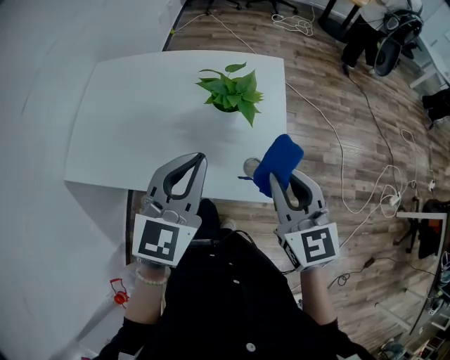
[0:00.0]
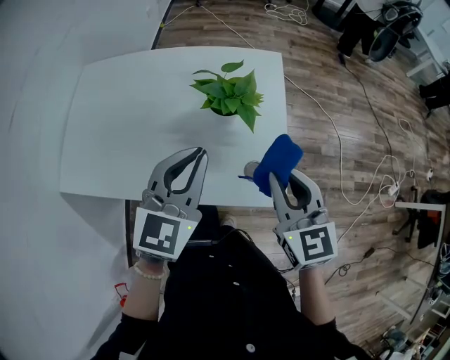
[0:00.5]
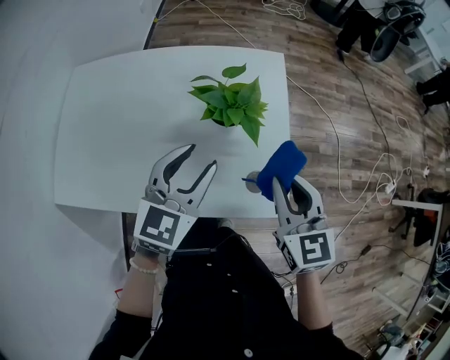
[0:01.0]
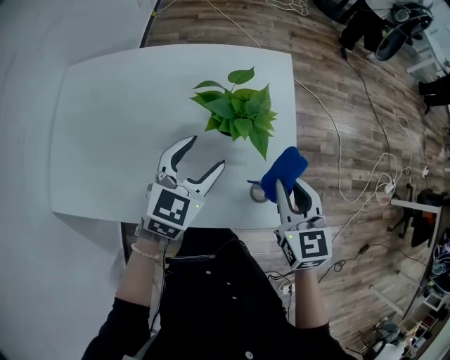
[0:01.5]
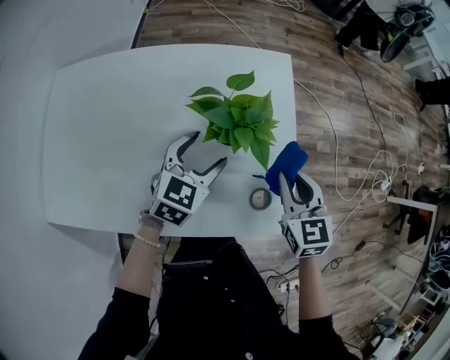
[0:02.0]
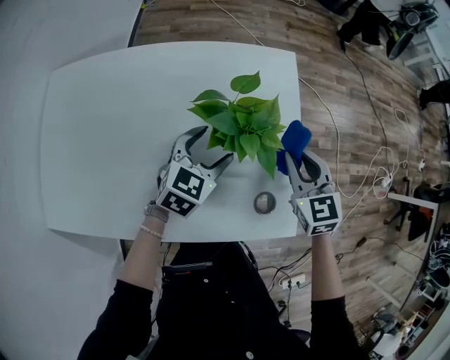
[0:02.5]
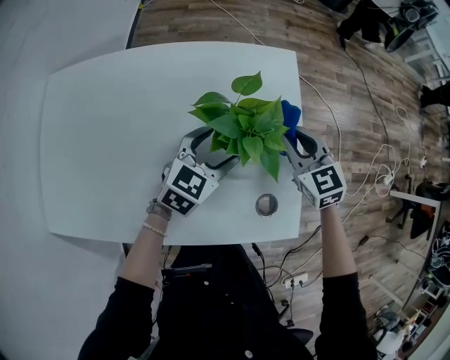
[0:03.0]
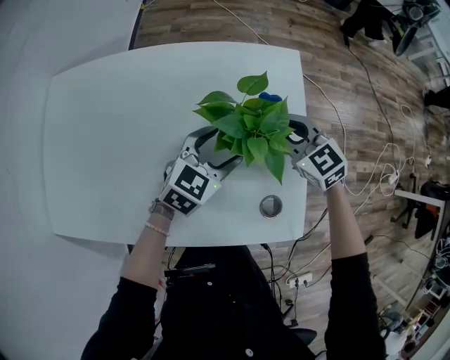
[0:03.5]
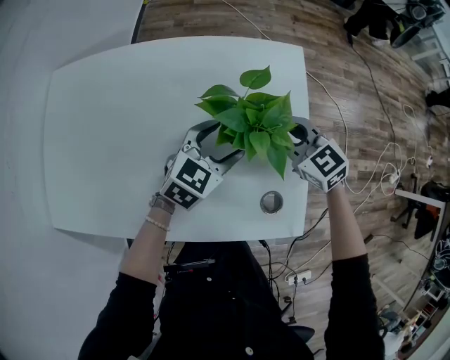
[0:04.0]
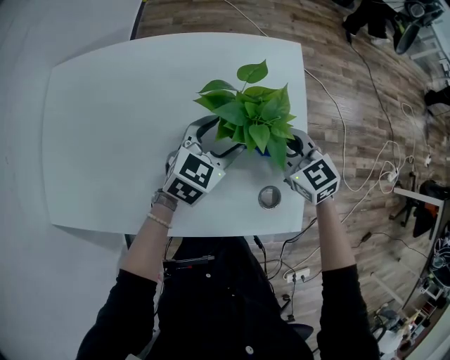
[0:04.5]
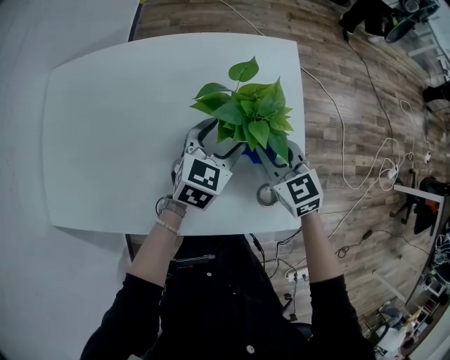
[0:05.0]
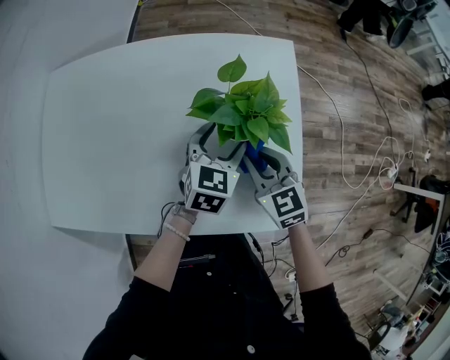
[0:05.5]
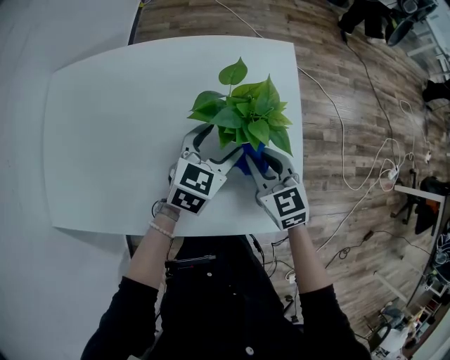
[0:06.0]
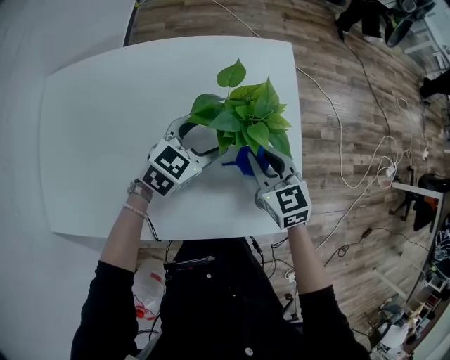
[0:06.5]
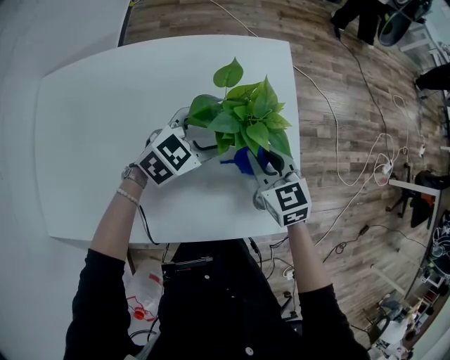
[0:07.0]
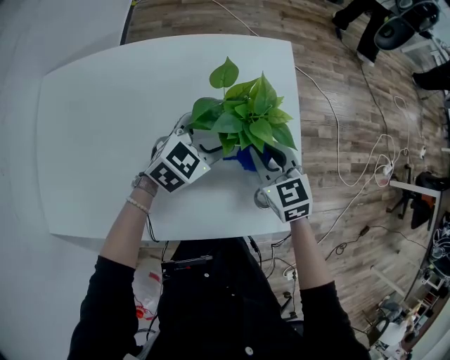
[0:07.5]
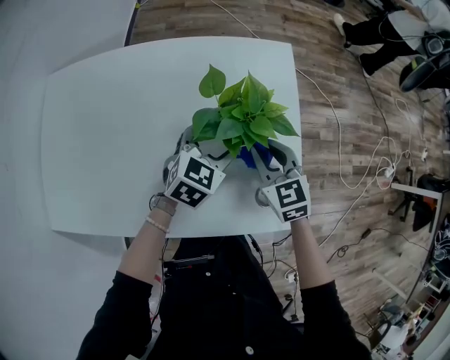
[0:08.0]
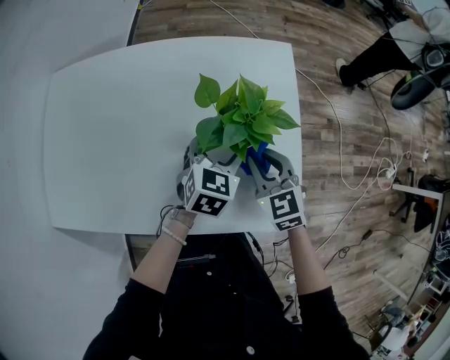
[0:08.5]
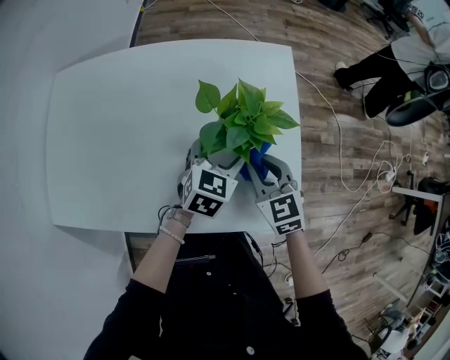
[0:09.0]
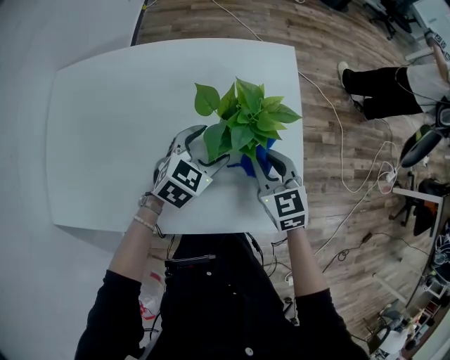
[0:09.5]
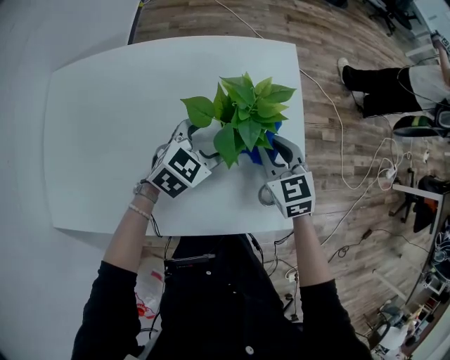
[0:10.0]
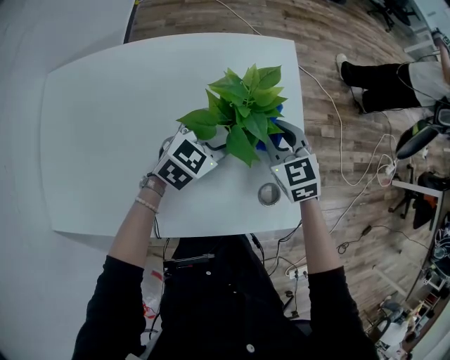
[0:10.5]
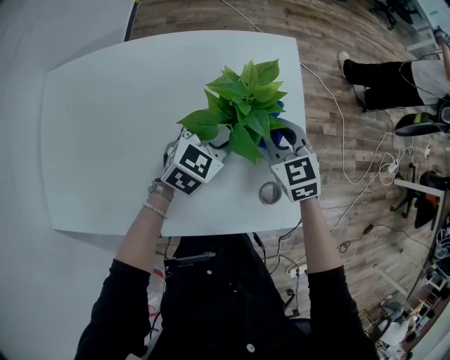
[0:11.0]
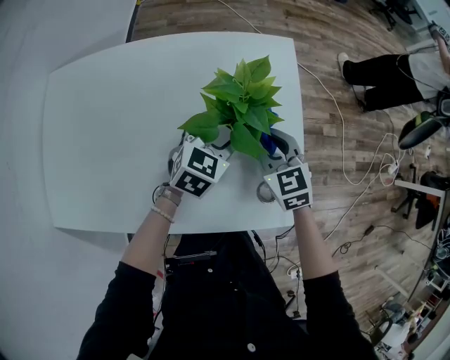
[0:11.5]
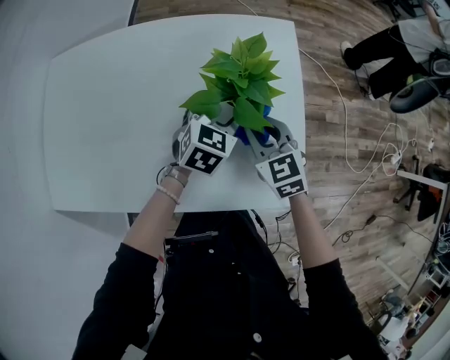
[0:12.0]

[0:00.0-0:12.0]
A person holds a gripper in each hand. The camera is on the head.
0.0 to 2.0 s: Both grippers move downward and forward, approximately 25 cm. The left gripper rotates about 30 degrees, and opens its fingers. The right gripper turns by about 20 degrees.
2.0 to 4.0 s: The right gripper is displaced forward, to the left and downward by roughly 15 cm, and turns by about 30 degrees.
4.0 to 6.0 s: The right gripper moves backward, approximately 10 cm.
8.0 to 12.0 s: There are only small adjustments of the grippers.

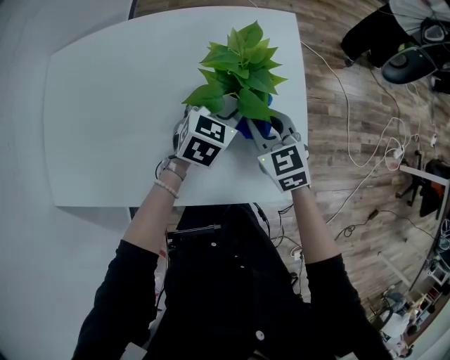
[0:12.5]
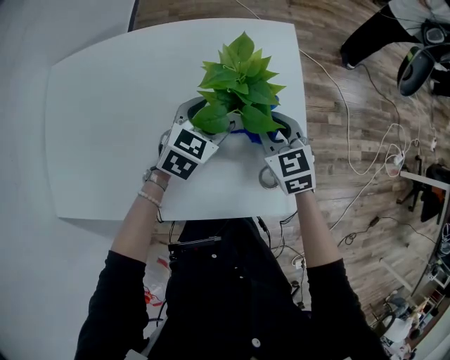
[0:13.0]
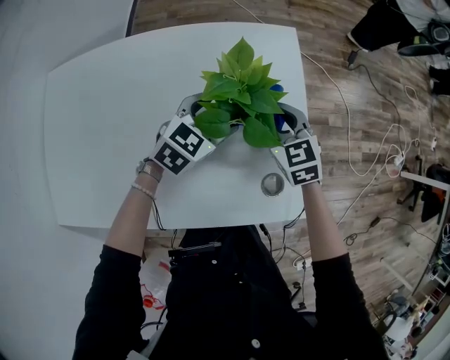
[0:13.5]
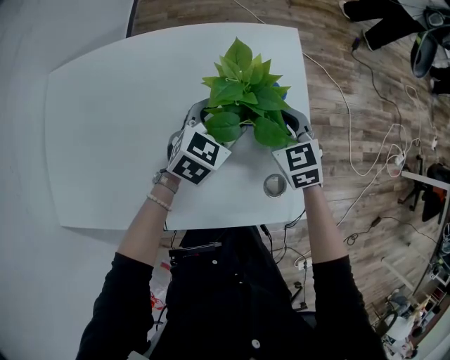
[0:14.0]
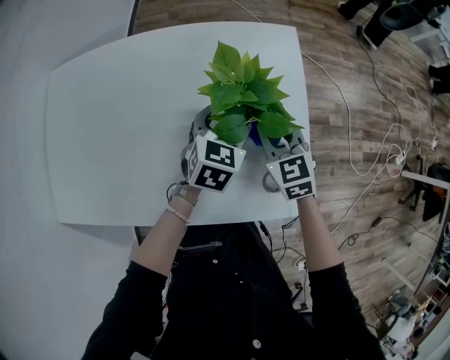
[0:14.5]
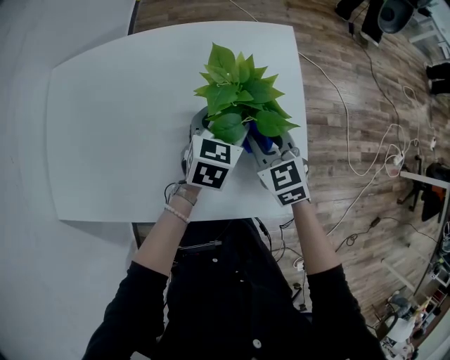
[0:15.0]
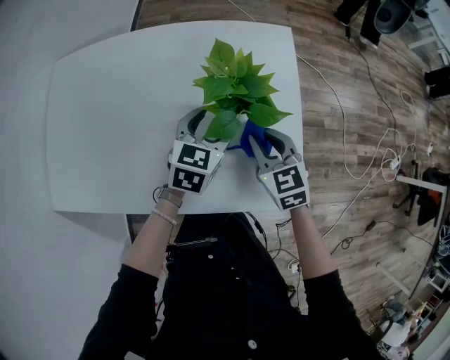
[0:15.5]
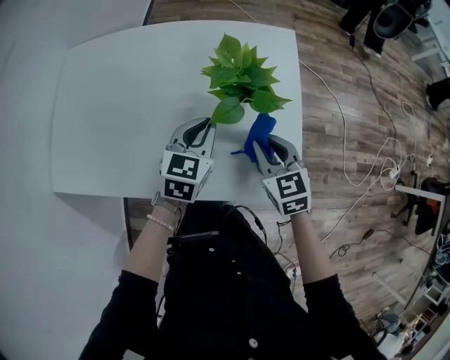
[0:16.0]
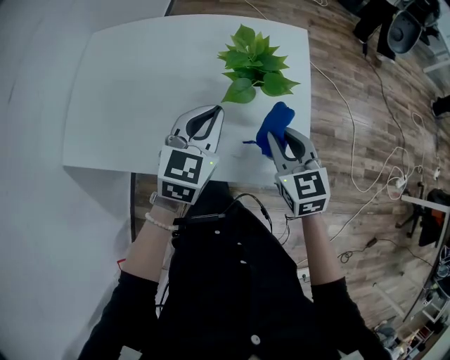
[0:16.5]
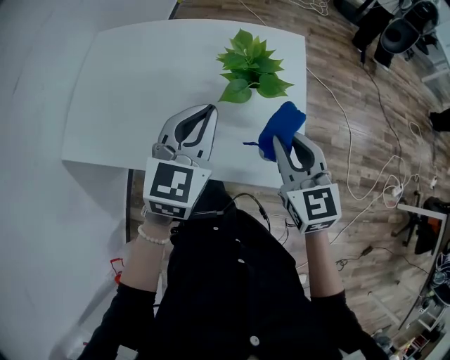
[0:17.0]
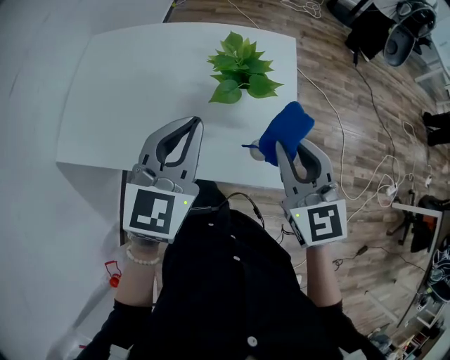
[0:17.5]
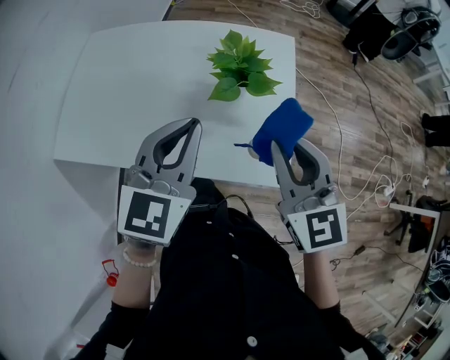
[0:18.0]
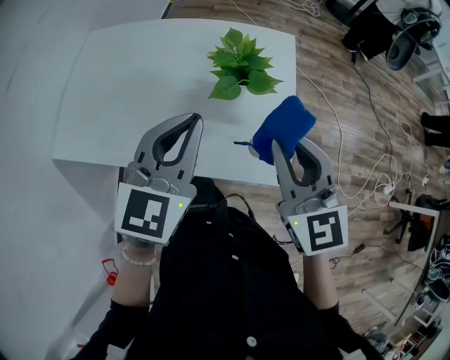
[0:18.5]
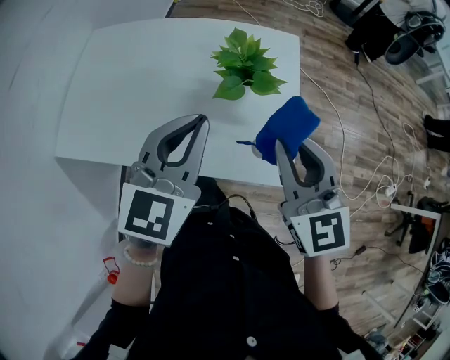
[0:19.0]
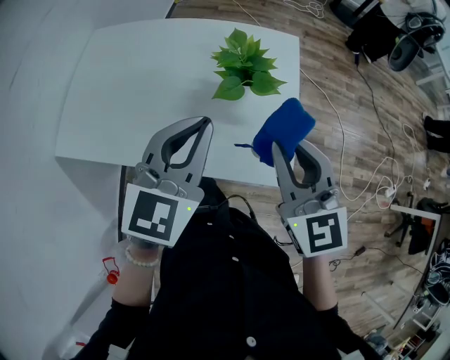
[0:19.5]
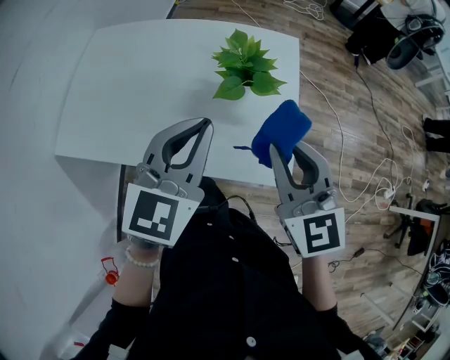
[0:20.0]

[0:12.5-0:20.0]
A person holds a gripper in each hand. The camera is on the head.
14.5 to 16.5 s: The left gripper is displaced upward, backward and to the left by some 20 cm, and closes its fingers, while the right gripper shifts about 15 cm backward and upward.
16.5 to 18.0 s: The right gripper goes roughly 15 cm upward, while the left gripper heads upward and backward, covering approximately 15 cm.
18.0 to 20.0 s: There are only small adjustments of the grippers.

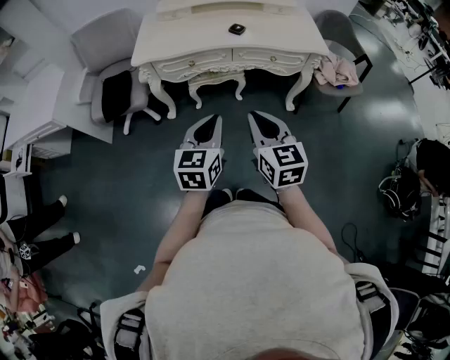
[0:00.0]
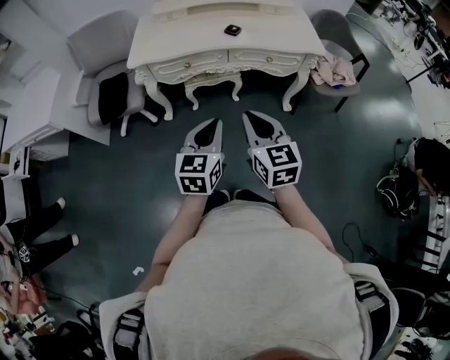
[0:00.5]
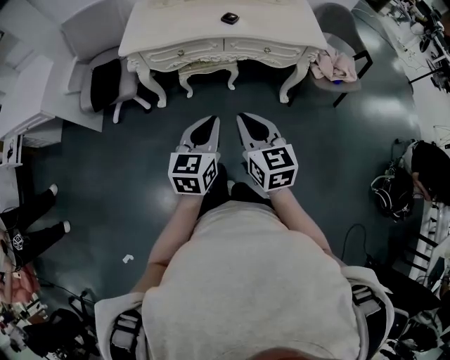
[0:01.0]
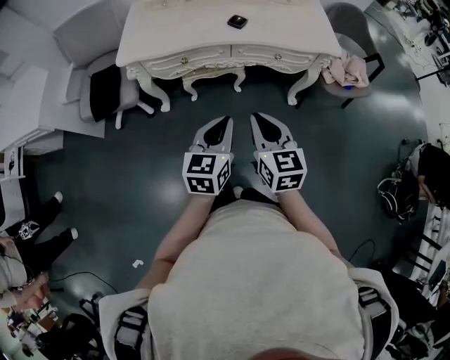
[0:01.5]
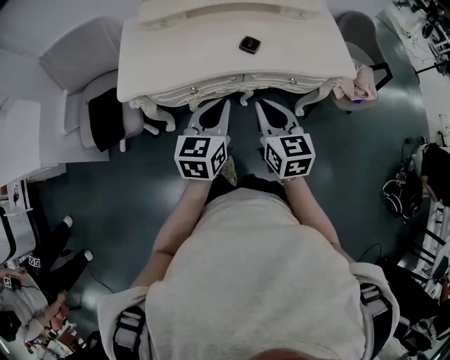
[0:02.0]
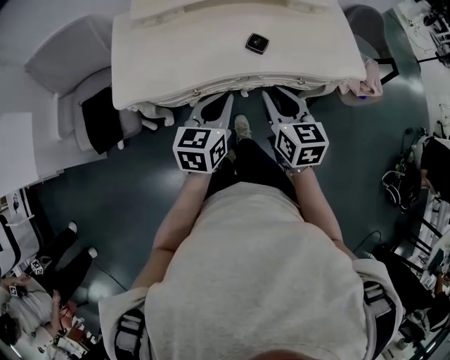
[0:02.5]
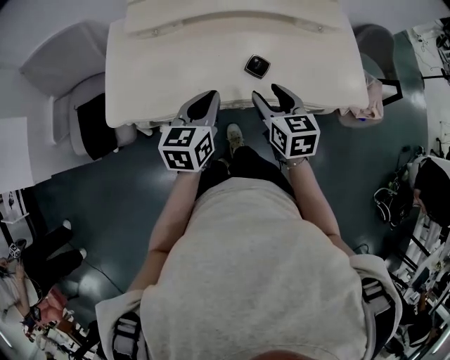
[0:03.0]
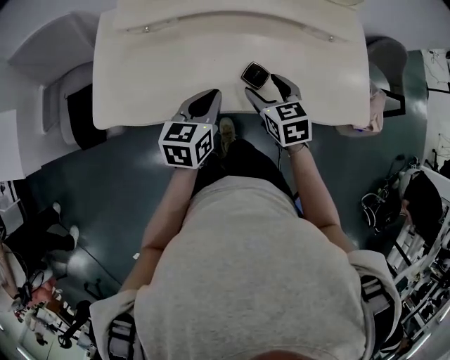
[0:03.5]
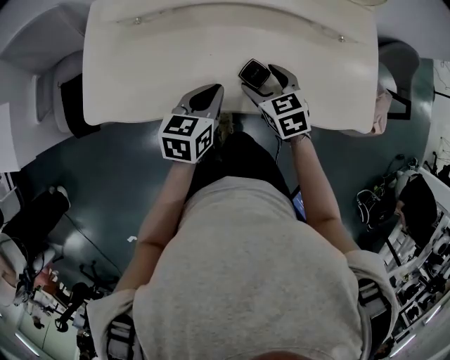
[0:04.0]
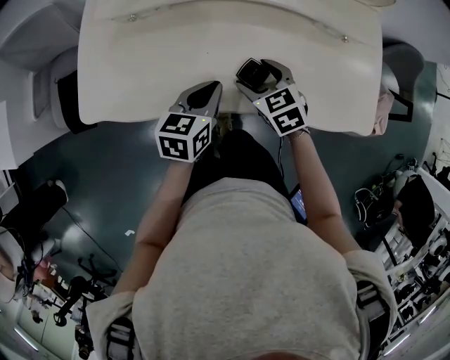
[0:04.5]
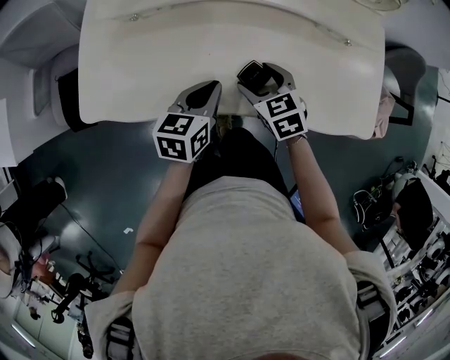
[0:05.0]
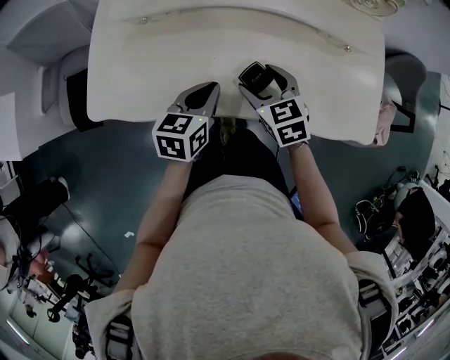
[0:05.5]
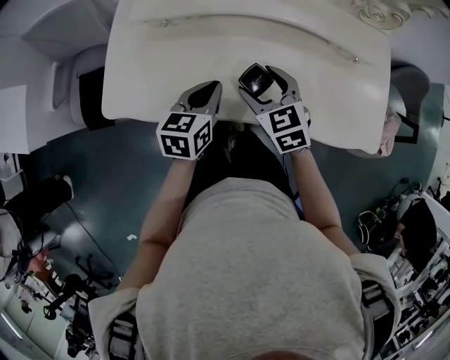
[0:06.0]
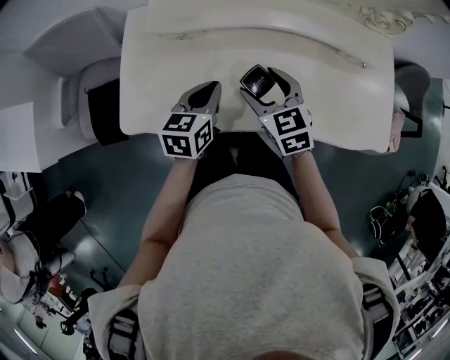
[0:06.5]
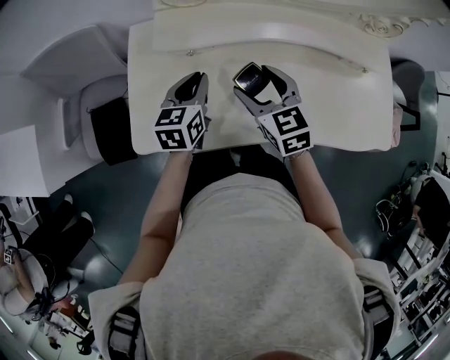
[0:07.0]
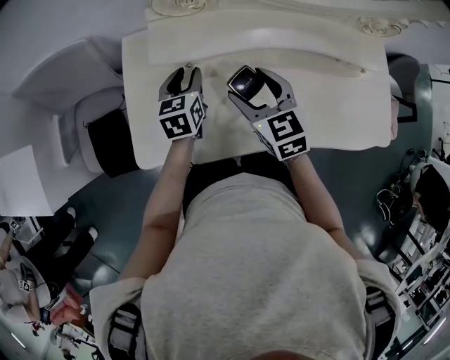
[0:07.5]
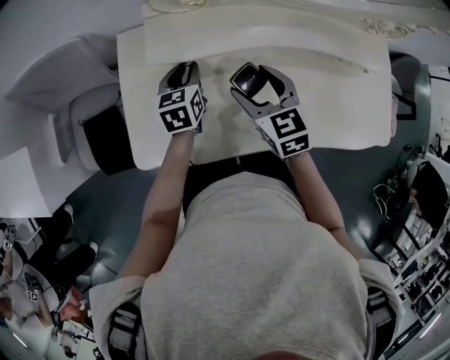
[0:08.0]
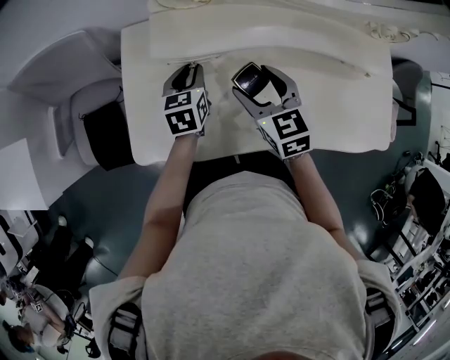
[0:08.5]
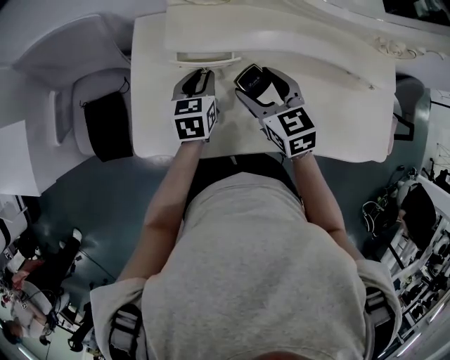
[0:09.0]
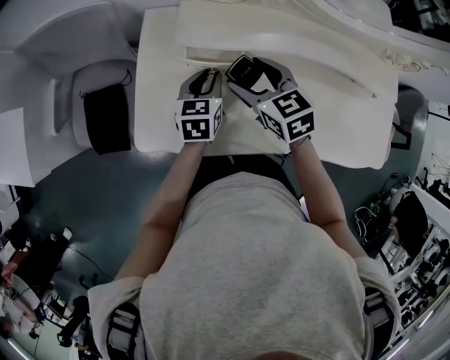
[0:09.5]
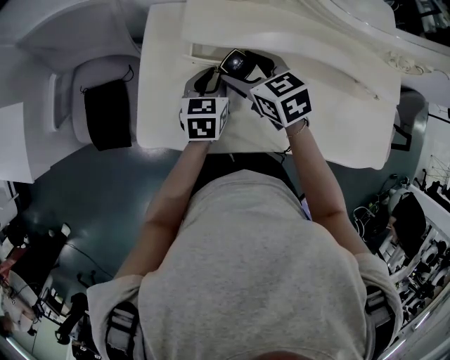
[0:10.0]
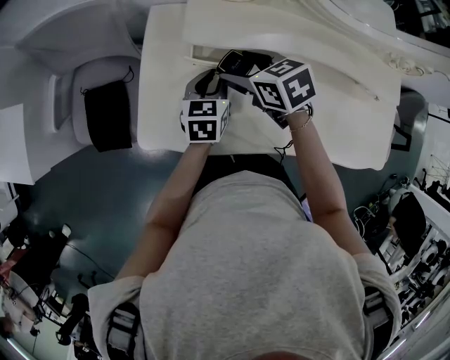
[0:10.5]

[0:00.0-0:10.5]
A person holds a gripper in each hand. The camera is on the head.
0.0 to 2.0 s: Both grippers move forward, roughly 30 cm.
2.0 to 4.0 s: Both grippers move forward and downward, some 30 cm. The left gripper changes its angle by about 20 degrees; the right gripper changes its angle by approximately 40 degrees, and opens.
4.0 to 6.5 s: The left gripper heads to the left and forward, covering roughly 15 cm, while the right gripper is displaced to the left and upward by about 15 cm.
6.5 to 8.5 s: The left gripper shifts approximately 15 cm forward and to the left, while the right gripper shifts some 10 cm forward and to the left.
8.5 to 10.5 s: The right gripper heads to the left and forward, covering some 10 cm, and changes its angle by about 30 degrees.
